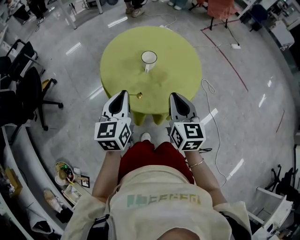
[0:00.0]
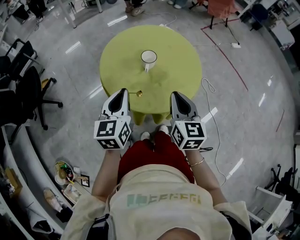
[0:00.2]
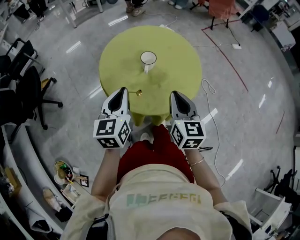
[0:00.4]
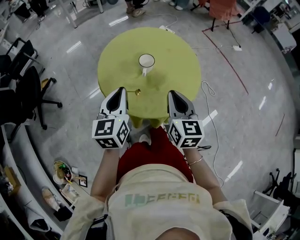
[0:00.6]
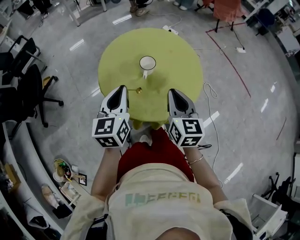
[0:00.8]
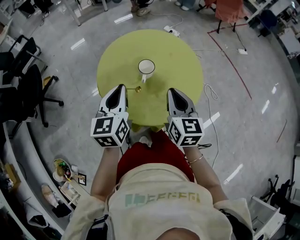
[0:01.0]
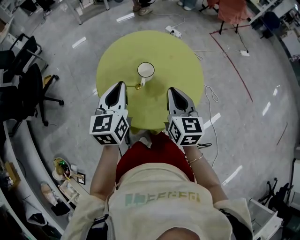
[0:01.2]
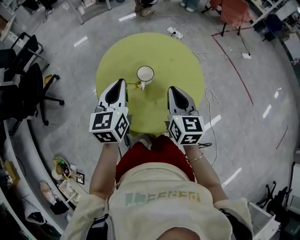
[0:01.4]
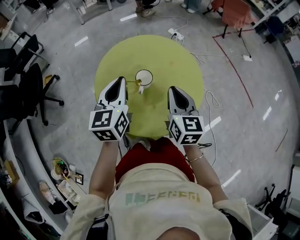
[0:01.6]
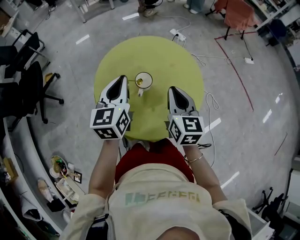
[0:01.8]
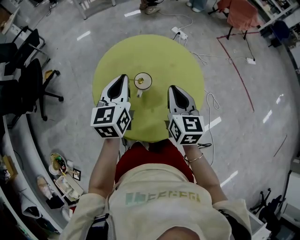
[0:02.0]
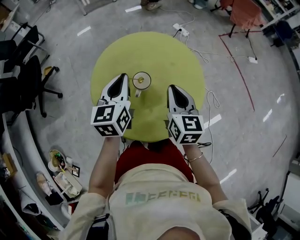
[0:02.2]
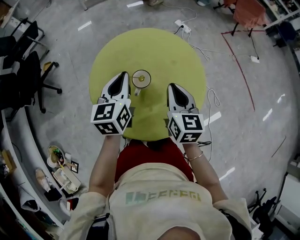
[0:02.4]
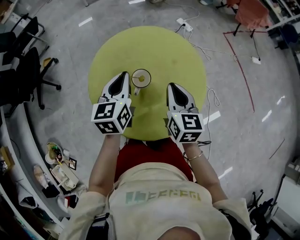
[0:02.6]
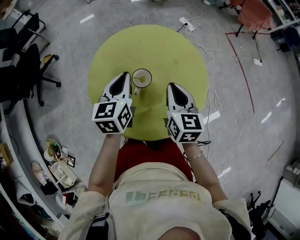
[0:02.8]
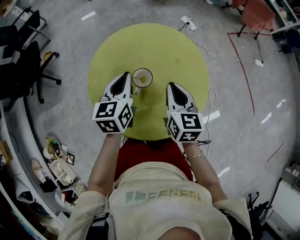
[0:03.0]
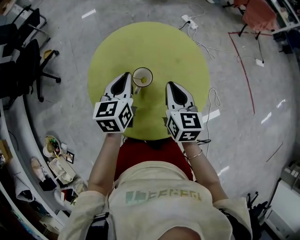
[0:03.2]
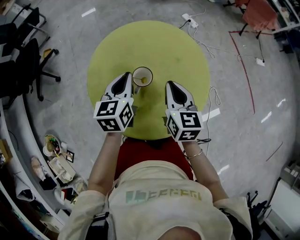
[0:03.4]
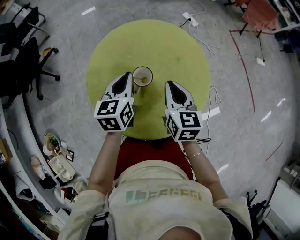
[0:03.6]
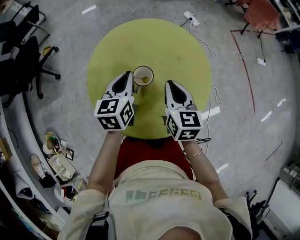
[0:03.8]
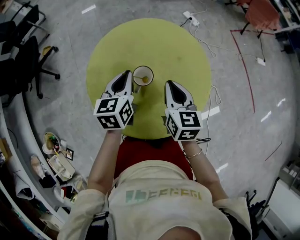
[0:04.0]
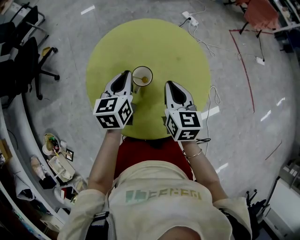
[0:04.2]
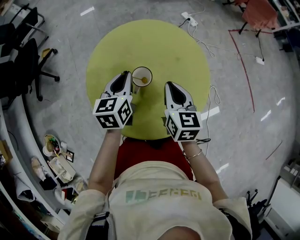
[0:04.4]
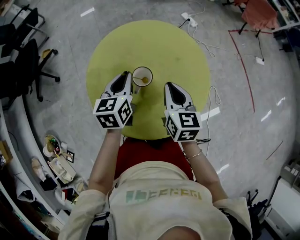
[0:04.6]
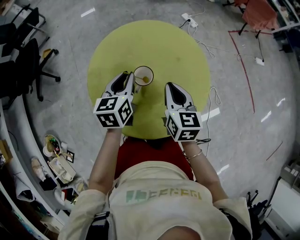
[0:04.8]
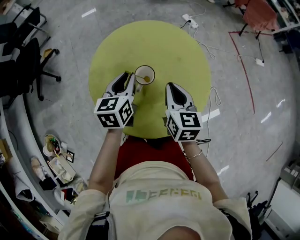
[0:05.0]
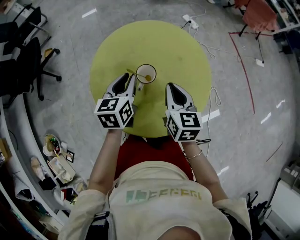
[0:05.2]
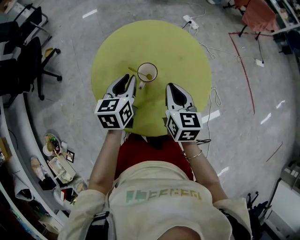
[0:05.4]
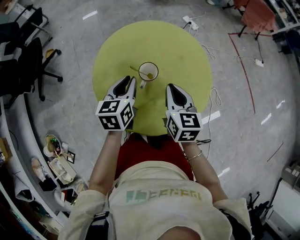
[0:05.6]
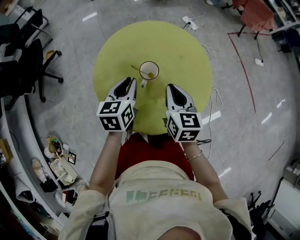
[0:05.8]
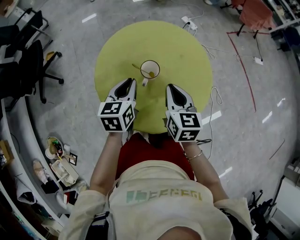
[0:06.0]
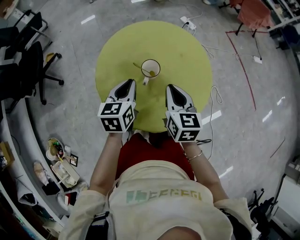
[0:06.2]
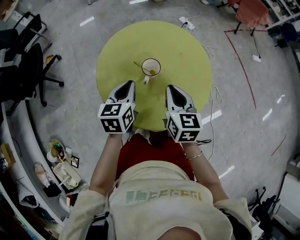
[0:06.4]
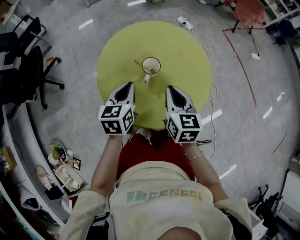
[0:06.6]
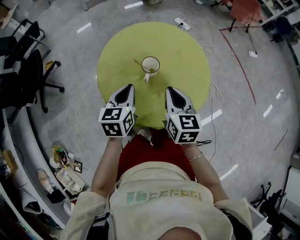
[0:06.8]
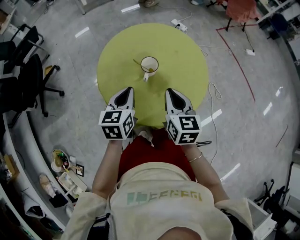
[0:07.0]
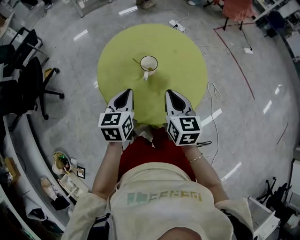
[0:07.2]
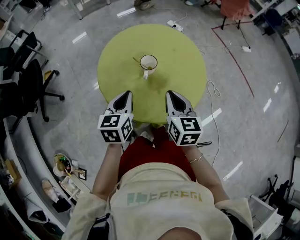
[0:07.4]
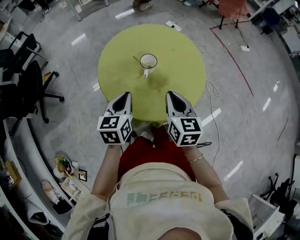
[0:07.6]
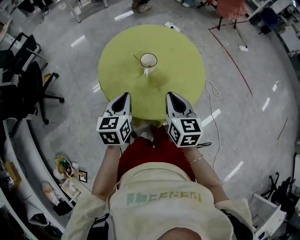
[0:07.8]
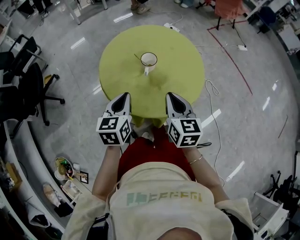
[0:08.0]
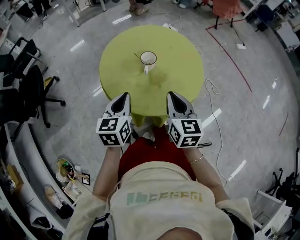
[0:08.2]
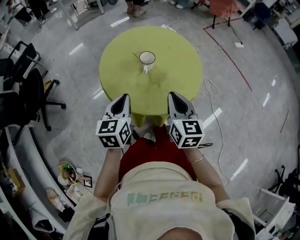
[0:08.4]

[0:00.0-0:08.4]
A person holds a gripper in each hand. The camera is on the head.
0:00.0 to 0:01.4: Both grippers travel together forward, roughly 15 cm.
0:01.4 to 0:02.8: The two grippers go some 10 cm forward and downward.
0:02.8 to 0:05.6: The grippers move only a little.
0:05.6 to 0:07.0: The grippers both shift backward by approximately 10 cm.
0:07.0 to 0:08.4: The grippers both shift backward by some 10 cm.

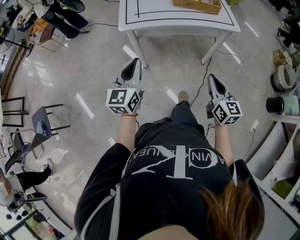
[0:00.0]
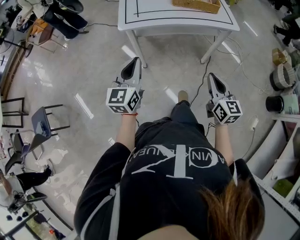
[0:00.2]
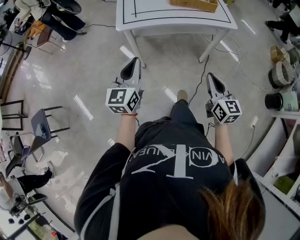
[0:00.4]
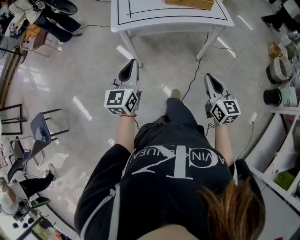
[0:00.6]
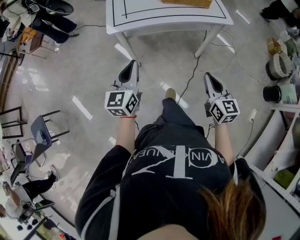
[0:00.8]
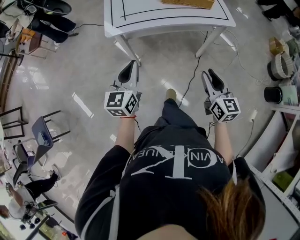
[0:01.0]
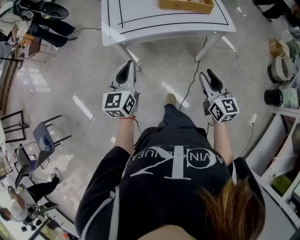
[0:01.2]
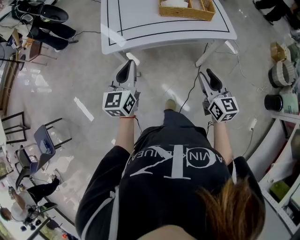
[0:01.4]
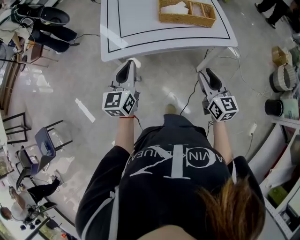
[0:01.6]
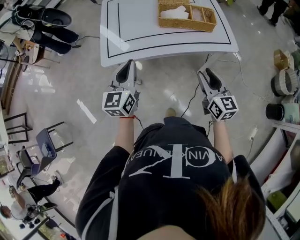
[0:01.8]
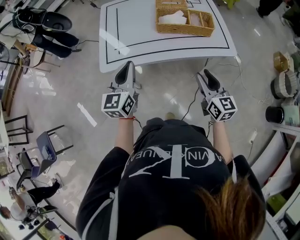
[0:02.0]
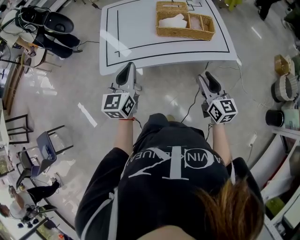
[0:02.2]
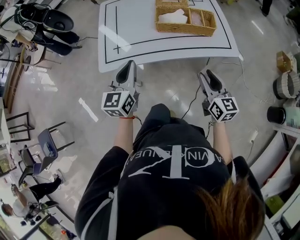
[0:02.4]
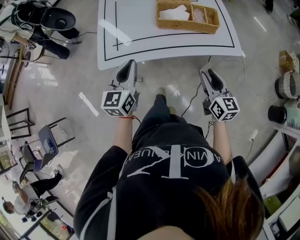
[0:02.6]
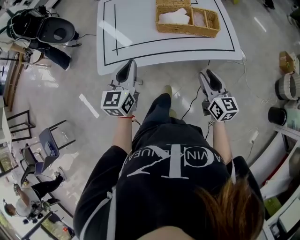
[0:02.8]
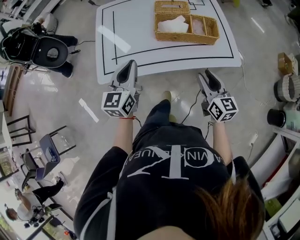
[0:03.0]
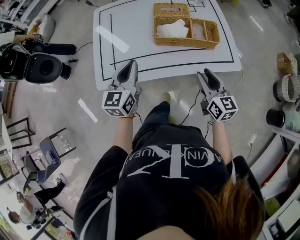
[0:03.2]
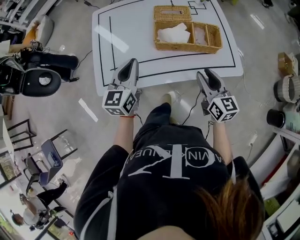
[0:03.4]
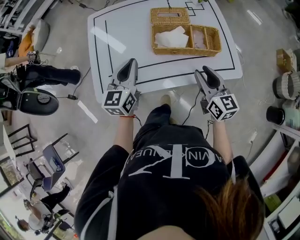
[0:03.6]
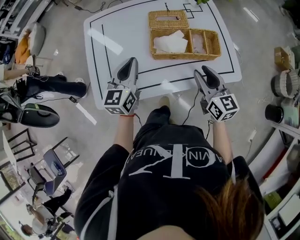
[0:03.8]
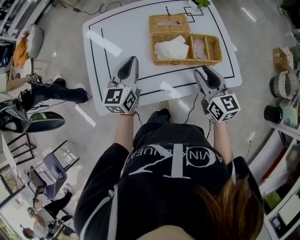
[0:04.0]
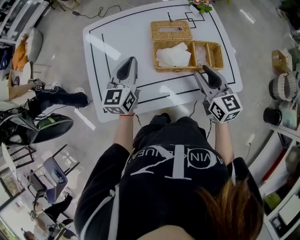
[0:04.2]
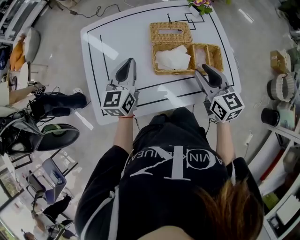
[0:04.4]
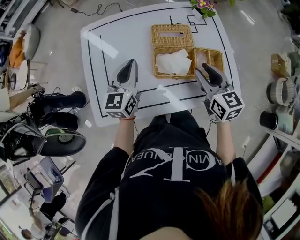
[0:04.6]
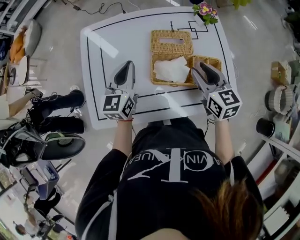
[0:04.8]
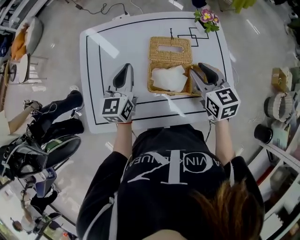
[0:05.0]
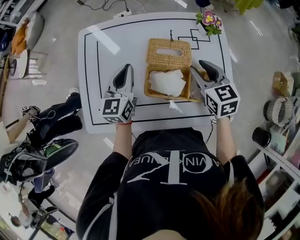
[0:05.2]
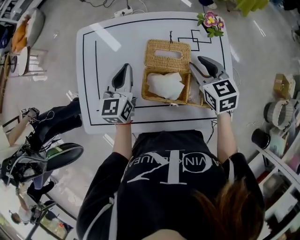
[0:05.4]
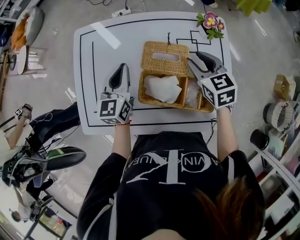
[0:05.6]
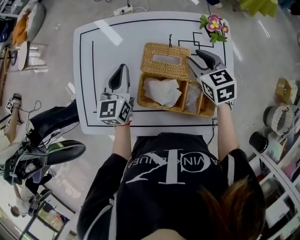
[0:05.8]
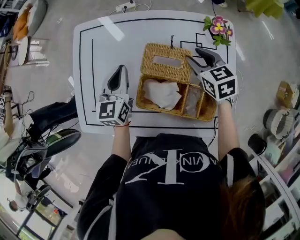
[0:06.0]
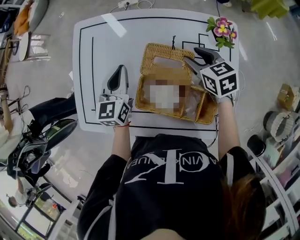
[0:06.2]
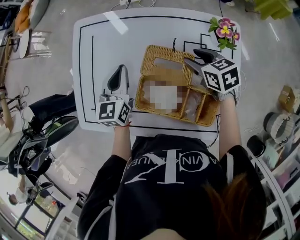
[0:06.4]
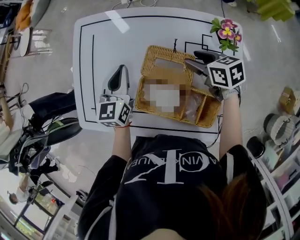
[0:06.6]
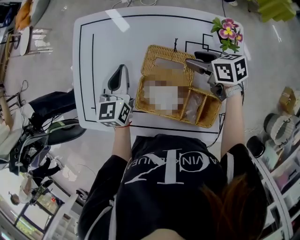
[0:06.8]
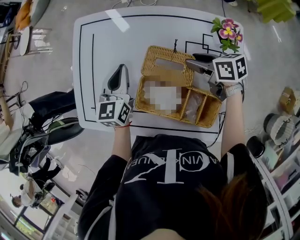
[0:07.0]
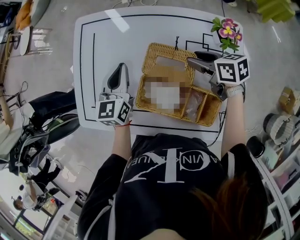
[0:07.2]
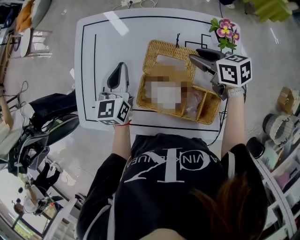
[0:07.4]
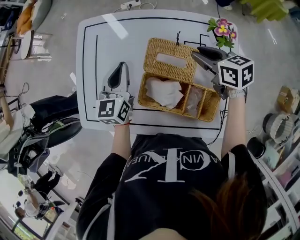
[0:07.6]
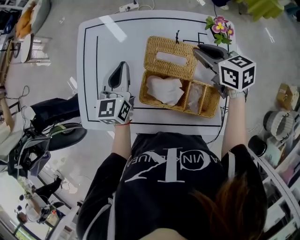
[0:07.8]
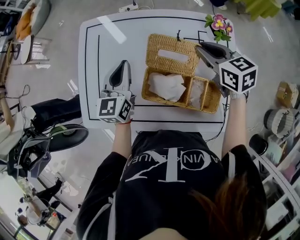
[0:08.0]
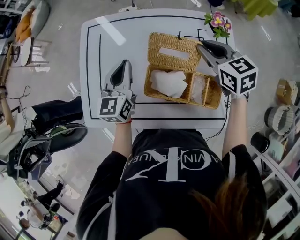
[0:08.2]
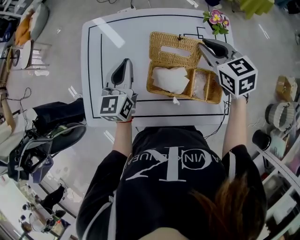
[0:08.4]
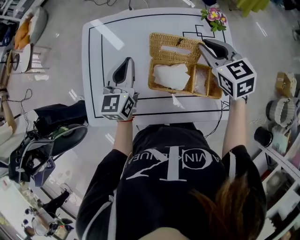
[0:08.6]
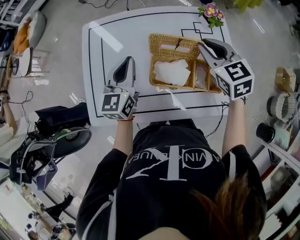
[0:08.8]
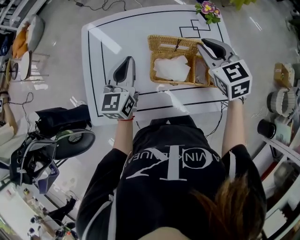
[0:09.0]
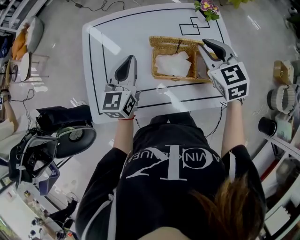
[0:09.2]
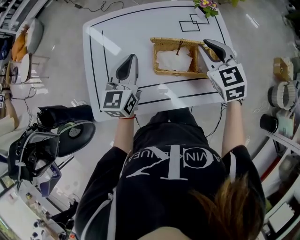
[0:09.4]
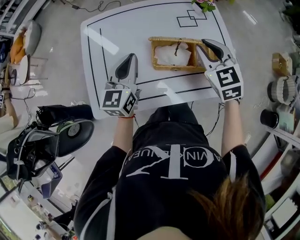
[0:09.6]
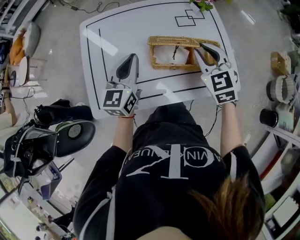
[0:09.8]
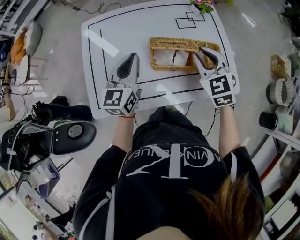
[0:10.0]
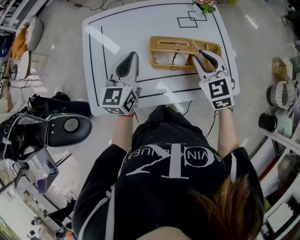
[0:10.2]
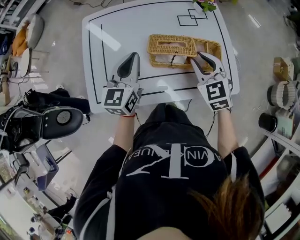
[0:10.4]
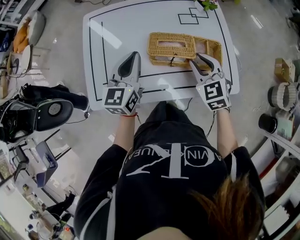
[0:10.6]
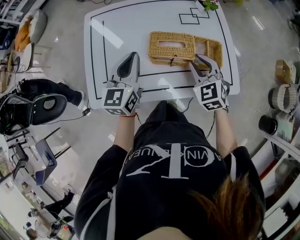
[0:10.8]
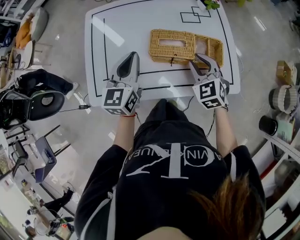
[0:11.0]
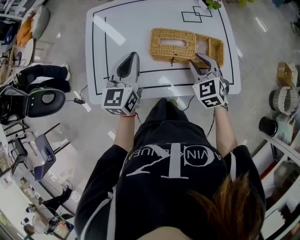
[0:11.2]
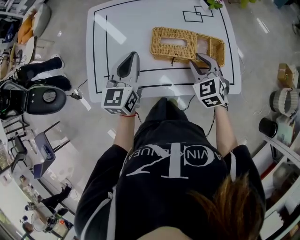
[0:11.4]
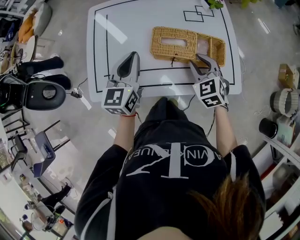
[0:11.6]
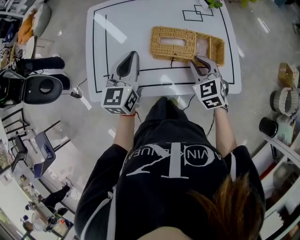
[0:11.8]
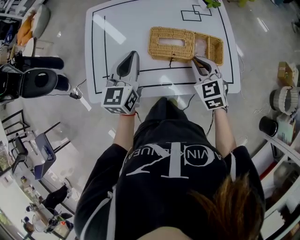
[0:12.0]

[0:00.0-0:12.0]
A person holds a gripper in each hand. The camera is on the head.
0:00.0 to 0:01.6: The grippers both shift forward by about 20 cm. The right gripper opens its fingers.
0:01.6 to 0:03.0: Both grippers travel together forward, some 15 cm.
0:03.0 to 0:04.4: Both grippers travel together forward, some 20 cm.
0:04.4 to 0:06.0: The left gripper moves forward, some 10 cm, and turns by roughly 20 degrees; the right gripper is displaced forward by roughly 25 cm, and rotates roughly 30 degrees.
0:06.0 to 0:07.6: The right gripper turns by approximately 20 degrees.
0:07.6 to 0:09.0: The right gripper is displaced backward and upward by some 15 cm, and turns by some 40 degrees. Meanwhile the left gripper travels backward and upward by approximately 10 cm.
0:09.0 to 0:10.4: The right gripper moves backward and downward, approximately 10 cm. Meanwhile the left gripper shifts some 5 cm backward.
0:10.4 to 0:12.0: The right gripper changes place by some 5 cm.

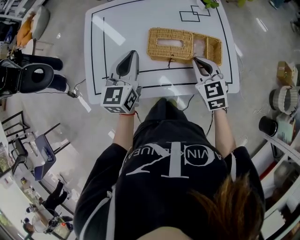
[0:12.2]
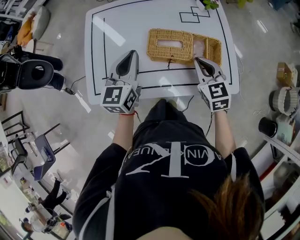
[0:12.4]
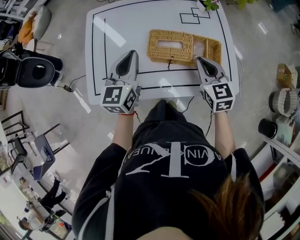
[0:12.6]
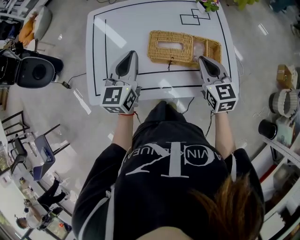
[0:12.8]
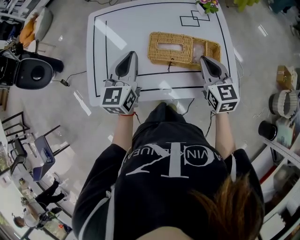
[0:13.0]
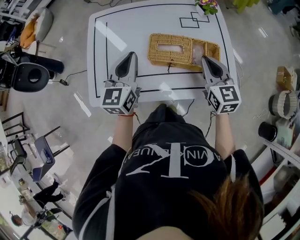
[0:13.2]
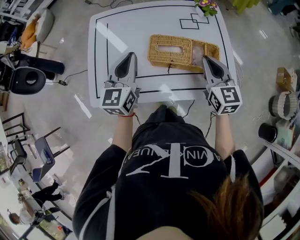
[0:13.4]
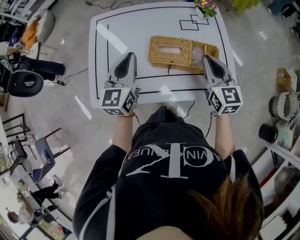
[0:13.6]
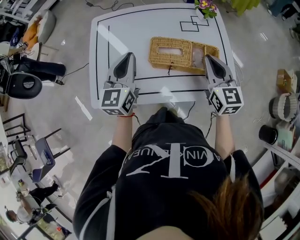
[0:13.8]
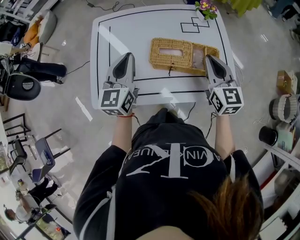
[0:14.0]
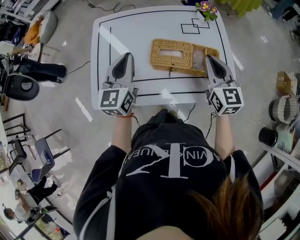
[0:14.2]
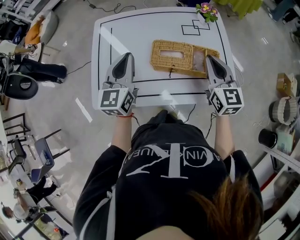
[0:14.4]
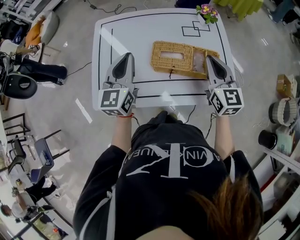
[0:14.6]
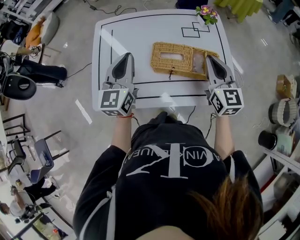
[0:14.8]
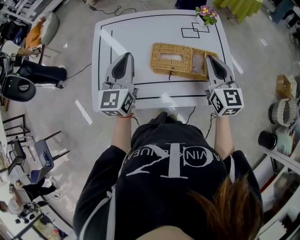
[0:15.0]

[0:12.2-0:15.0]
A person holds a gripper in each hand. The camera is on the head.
0:12.2 to 0:13.6: The right gripper is displaced upward by some 10 cm, and rotates some 20 degrees.
0:13.6 to 0:15.0: The grippers move only a little.

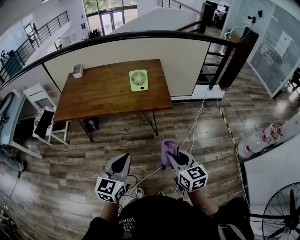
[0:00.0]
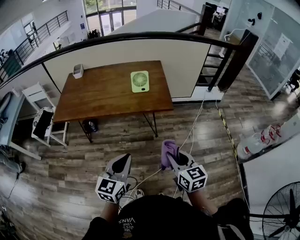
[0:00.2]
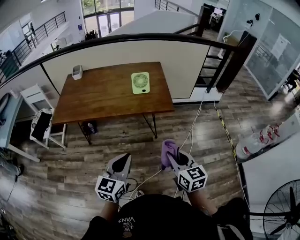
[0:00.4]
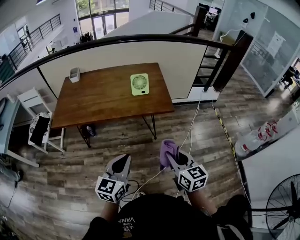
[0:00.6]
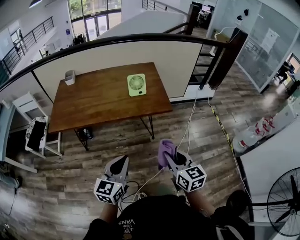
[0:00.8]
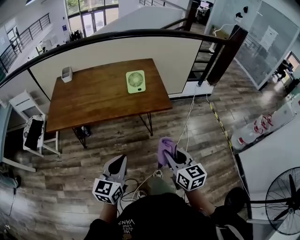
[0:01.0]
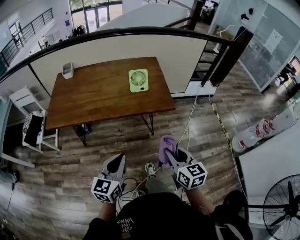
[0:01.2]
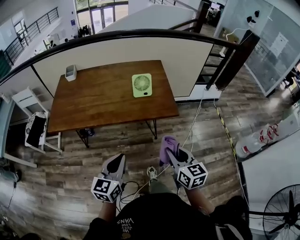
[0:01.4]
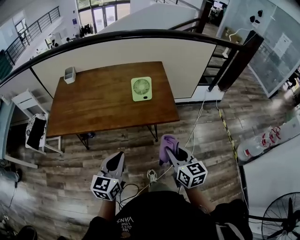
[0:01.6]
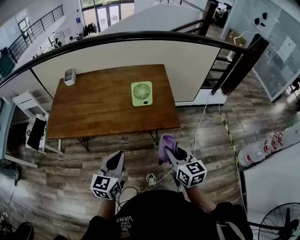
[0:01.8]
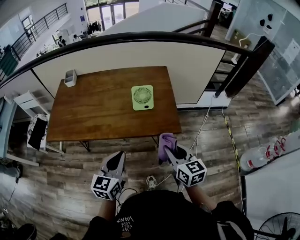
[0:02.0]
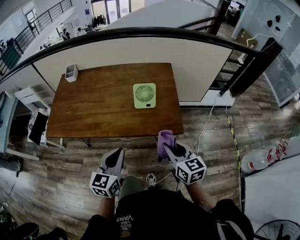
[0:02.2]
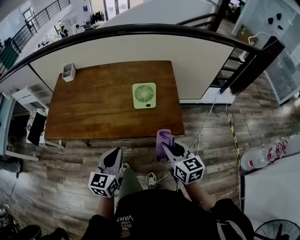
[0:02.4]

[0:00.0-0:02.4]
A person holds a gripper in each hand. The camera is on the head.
0:00.0 to 0:01.2: The two grippers go roughly 10 cm to the left and forward.
0:01.2 to 0:02.4: The two grippers go some 20 cm forward.
